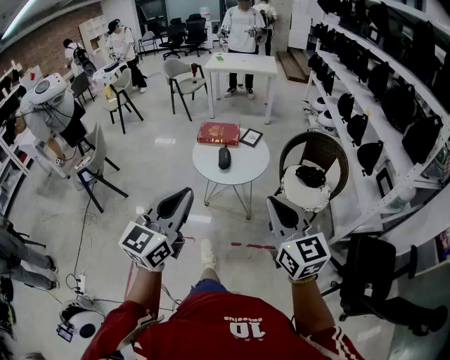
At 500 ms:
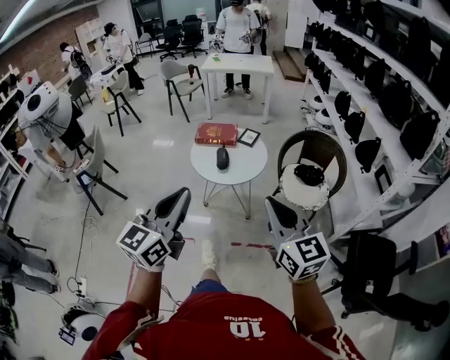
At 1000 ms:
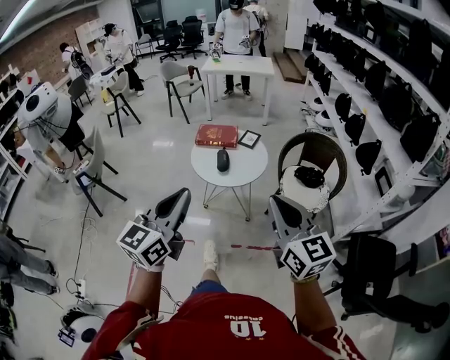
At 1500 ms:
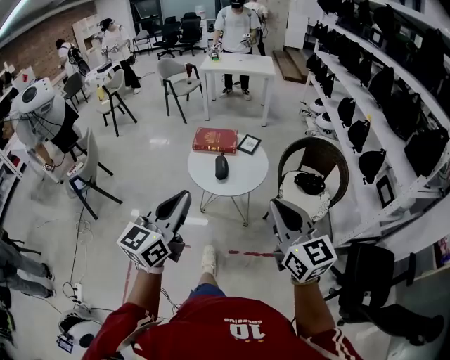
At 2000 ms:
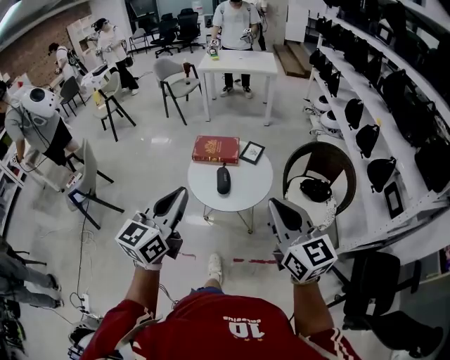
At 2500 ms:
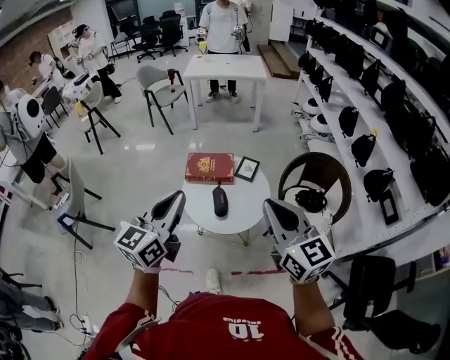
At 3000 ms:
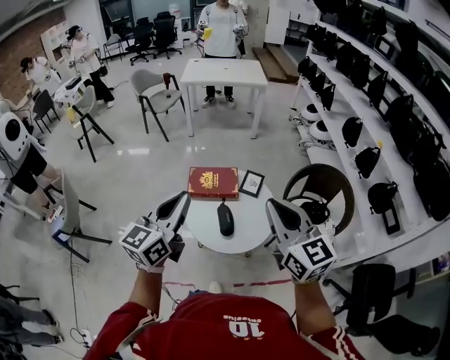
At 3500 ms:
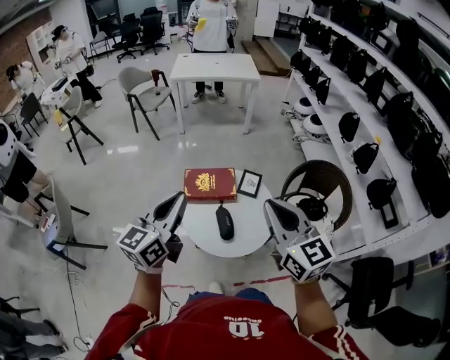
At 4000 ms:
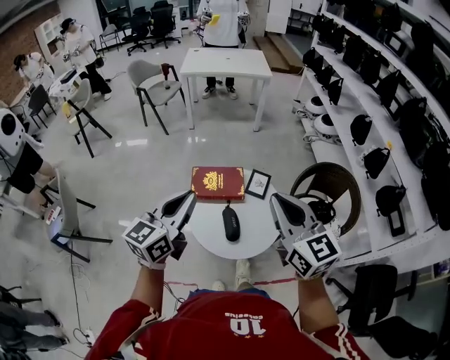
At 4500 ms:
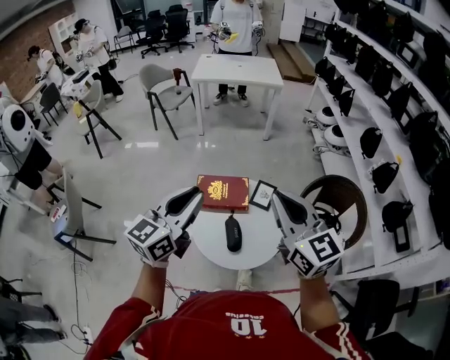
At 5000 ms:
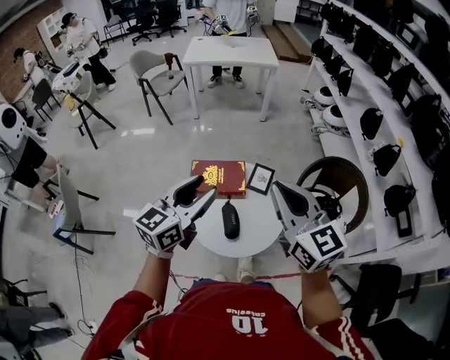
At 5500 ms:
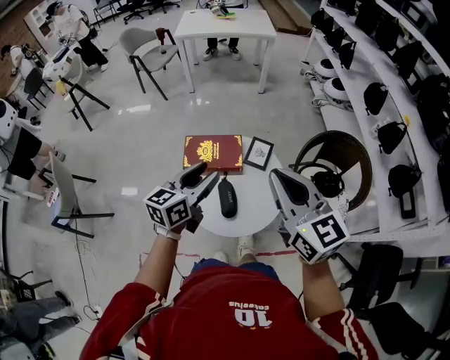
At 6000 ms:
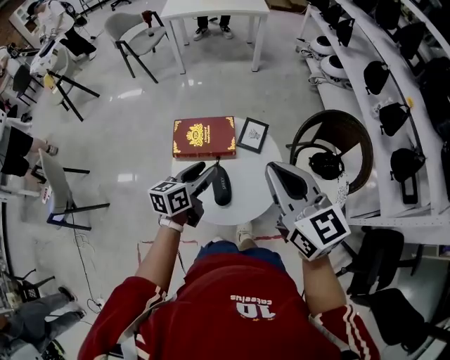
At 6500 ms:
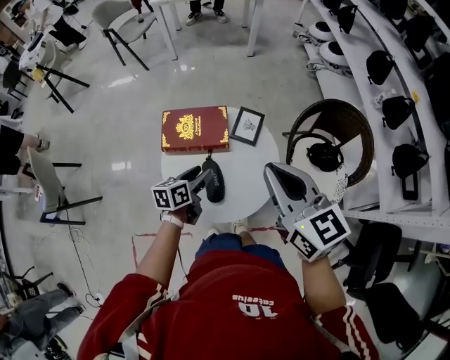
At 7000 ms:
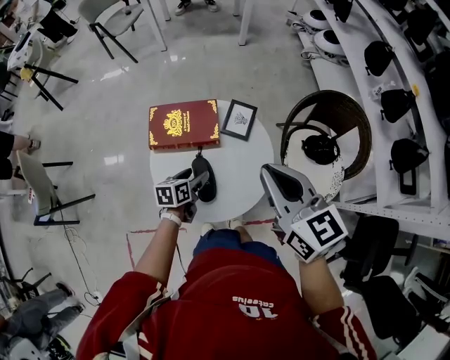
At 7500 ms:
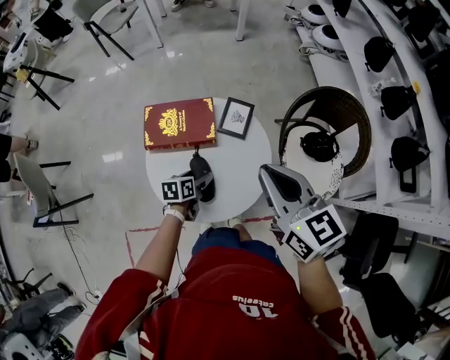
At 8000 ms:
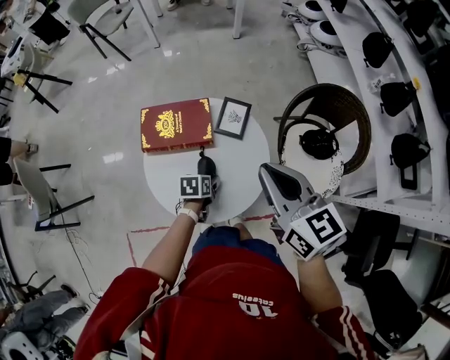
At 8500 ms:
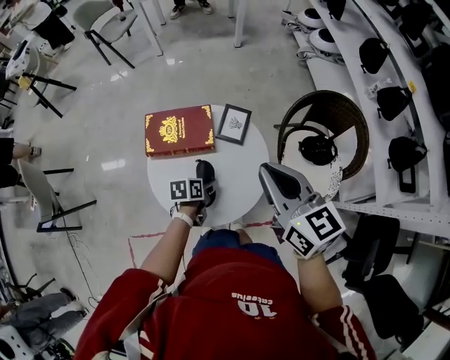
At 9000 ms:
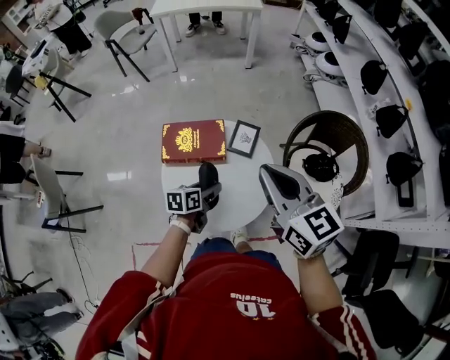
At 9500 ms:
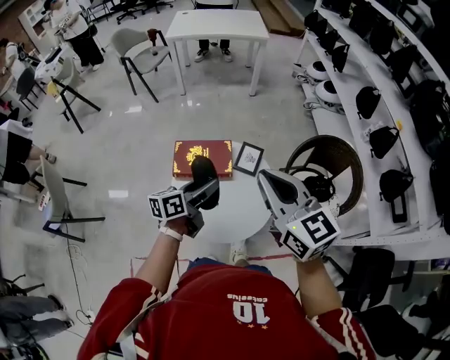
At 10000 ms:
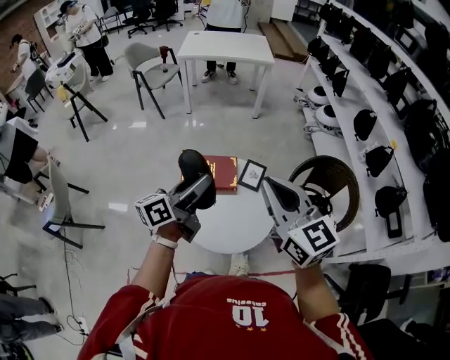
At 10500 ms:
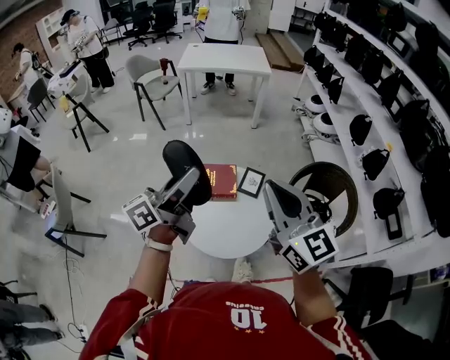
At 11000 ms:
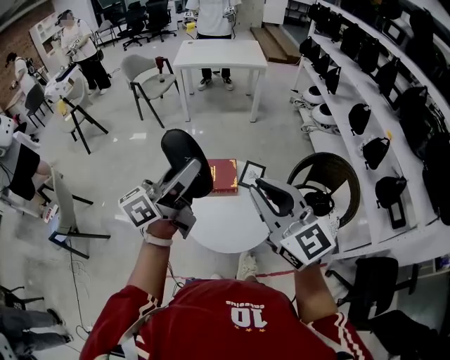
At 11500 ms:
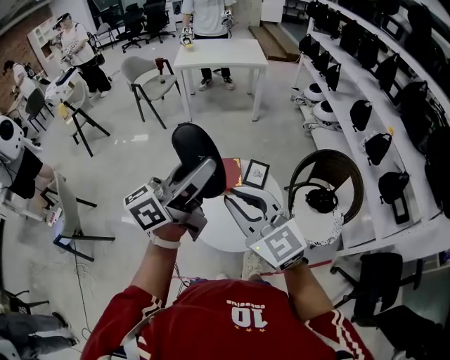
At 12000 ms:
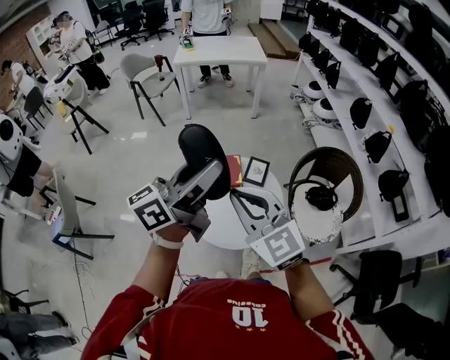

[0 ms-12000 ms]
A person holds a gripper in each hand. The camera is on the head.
0 ms to 2000 ms: Both grippers travel together forward, roughly 20 cm.
2000 ms to 4000 ms: The right gripper heads forward and to the left, covering about 30 cm; the left gripper shifts roughly 30 cm forward.
4000 ms to 6000 ms: The right gripper is displaced downward and forward by about 10 cm. The left gripper goes roughly 25 cm downward, changes its angle by about 30 degrees, and opens up.
6000 ms to 8000 ms: The left gripper goes some 25 cm downward, and points its fingers some 40 degrees further downward; the right gripper heads downward and forward, covering approximately 10 cm.
8000 ms to 10000 ms: The right gripper heads upward and to the left, covering about 20 cm, and rotates roughly 20 degrees. The left gripper shifts some 40 cm upward, and angles its fingers upward, by roughly 70 degrees.
10000 ms to 12000 ms: The left gripper travels upward and backward by some 15 cm. The right gripper shifts roughly 10 cm to the left and backward.

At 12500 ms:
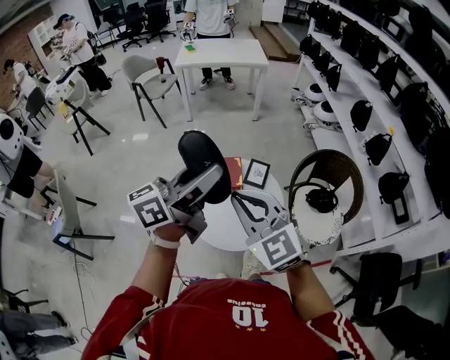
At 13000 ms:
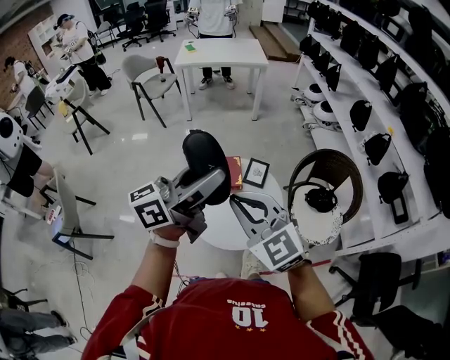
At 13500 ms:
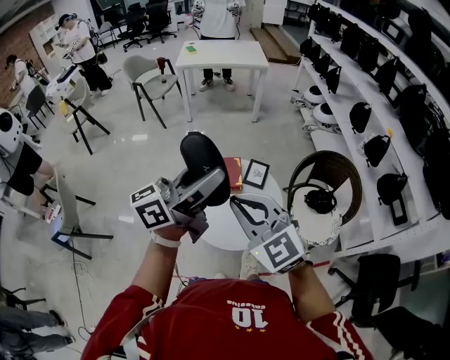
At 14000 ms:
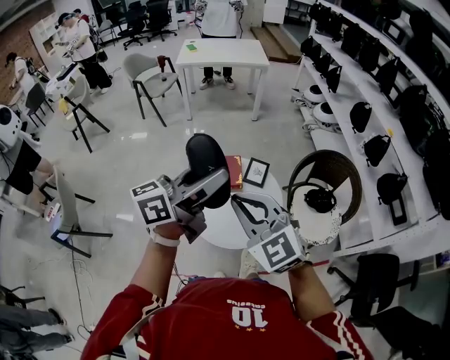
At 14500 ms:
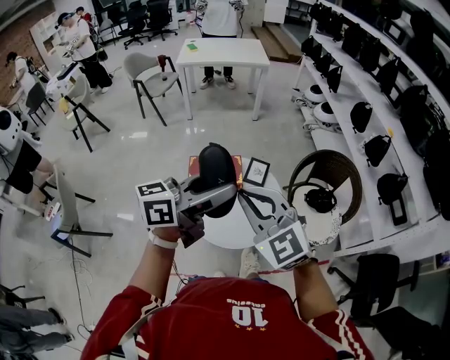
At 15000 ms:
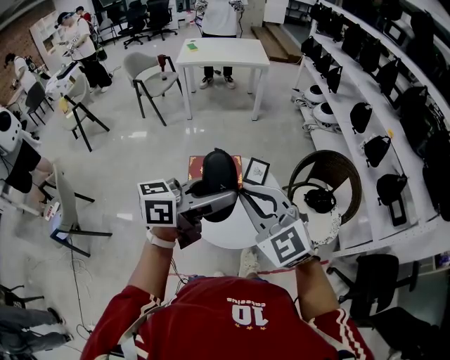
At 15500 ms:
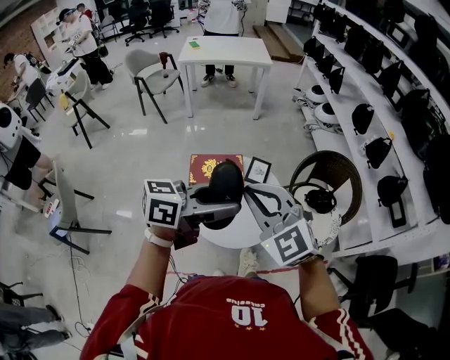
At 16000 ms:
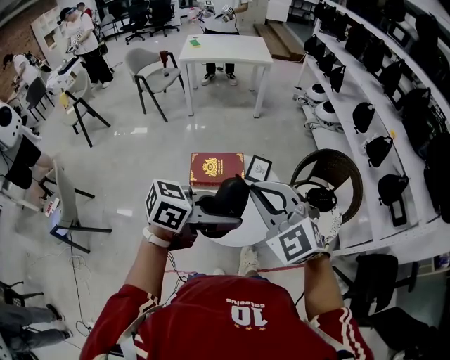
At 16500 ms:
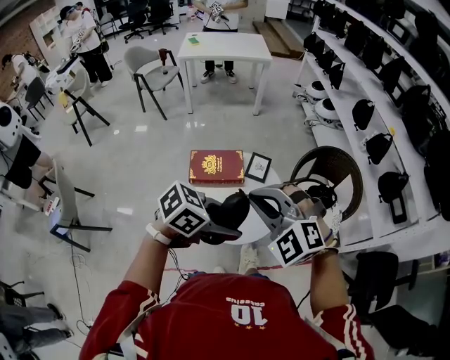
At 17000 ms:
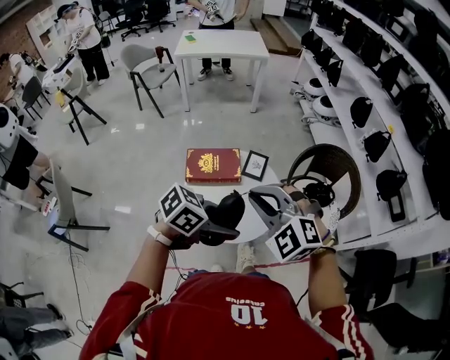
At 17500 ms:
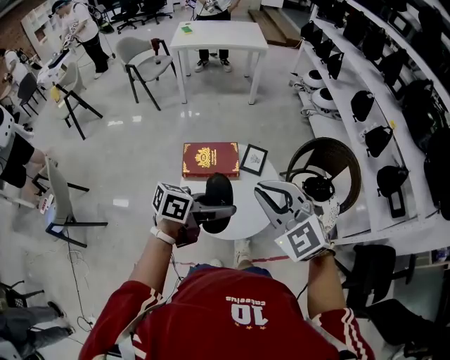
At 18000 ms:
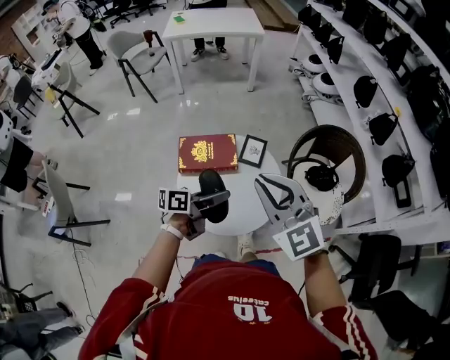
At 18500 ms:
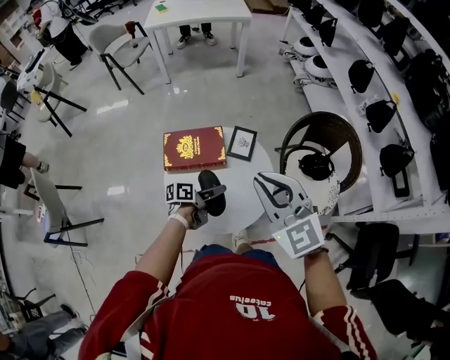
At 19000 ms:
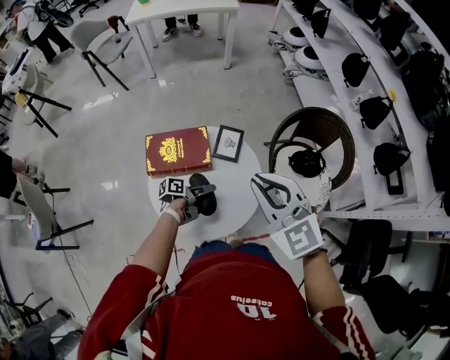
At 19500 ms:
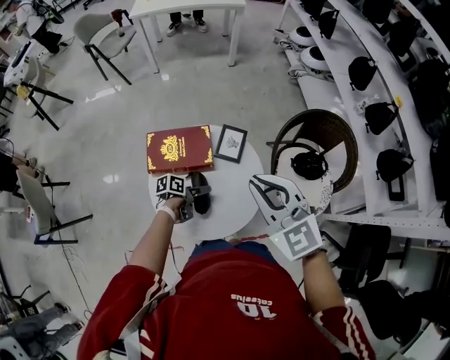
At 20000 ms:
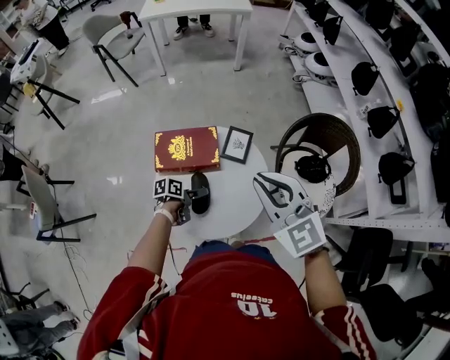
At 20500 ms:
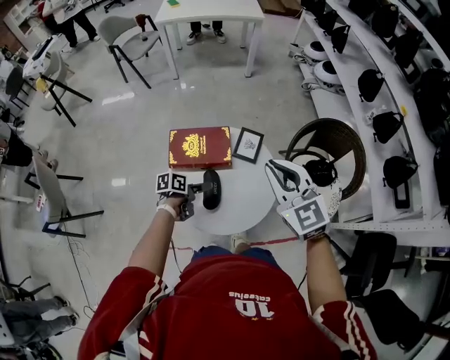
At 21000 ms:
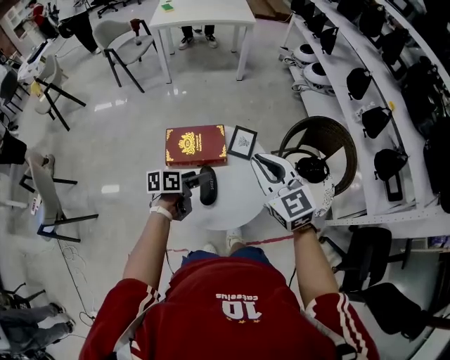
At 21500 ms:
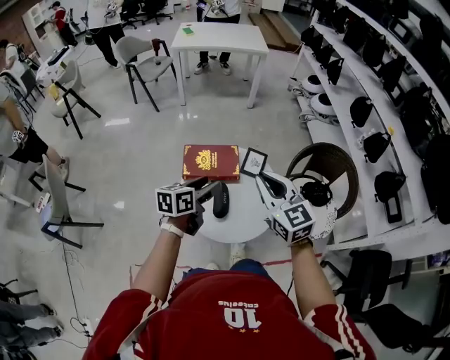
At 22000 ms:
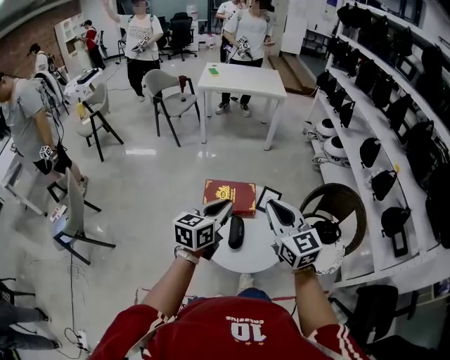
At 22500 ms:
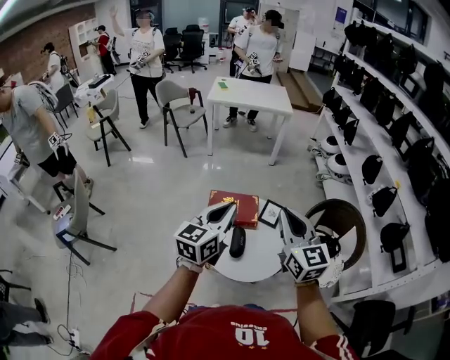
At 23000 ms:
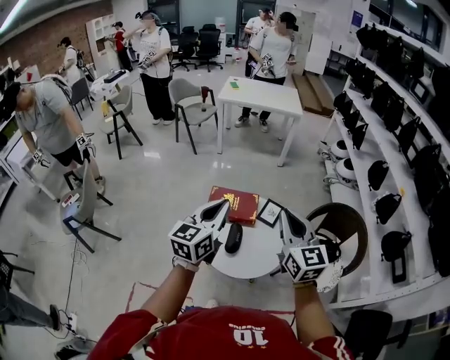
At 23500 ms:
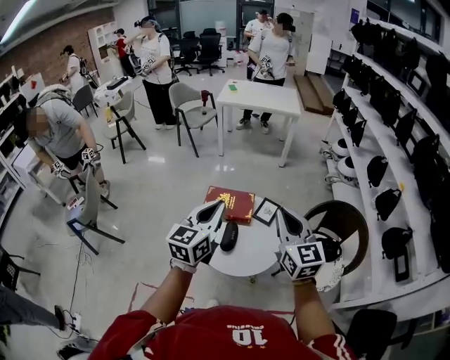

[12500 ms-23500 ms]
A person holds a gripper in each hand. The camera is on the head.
12500 ms to 14500 ms: The left gripper ends up approximately 5 cm from where it was.
14500 ms to 16000 ms: The left gripper heads downward, covering some 5 cm, and rotates about 30 degrees.
16000 ms to 18000 ms: The right gripper shifts by approximately 10 cm, while the left gripper shifts roughly 20 cm downward, and rotates roughly 40 degrees.
18000 ms to 20000 ms: The left gripper heads downward, covering about 25 cm, and points its fingers roughly 30 degrees further downward; the right gripper goes about 10 cm forward and downward.
20000 ms to 21500 ms: The right gripper heads to the left, covering some 5 cm, while the left gripper goes roughly 25 cm upward, and turns by approximately 40 degrees.
21500 ms to 23500 ms: The left gripper goes about 25 cm upward and backward, changes its angle by approximately 40 degrees, and closes its fingers; the right gripper travels upward, to the right and backward by roughly 15 cm.

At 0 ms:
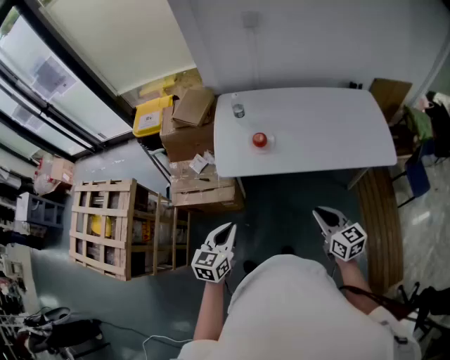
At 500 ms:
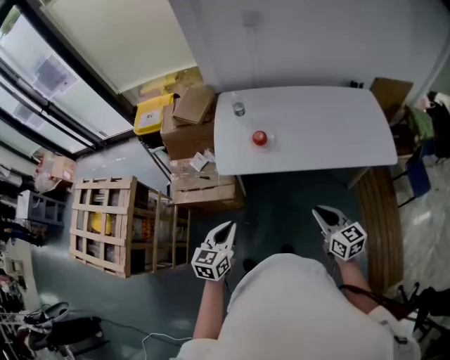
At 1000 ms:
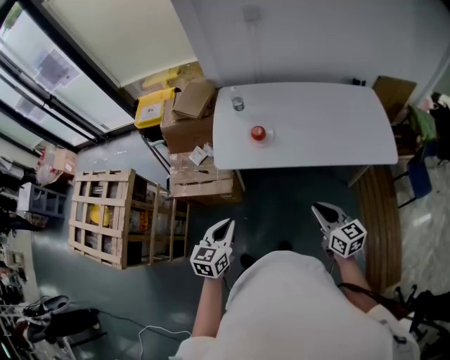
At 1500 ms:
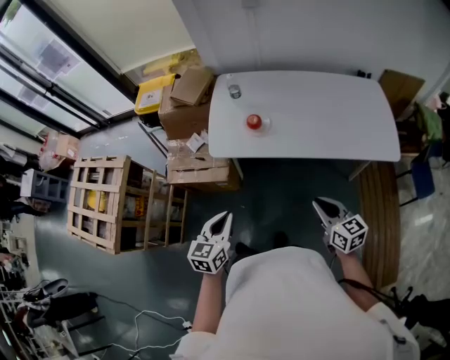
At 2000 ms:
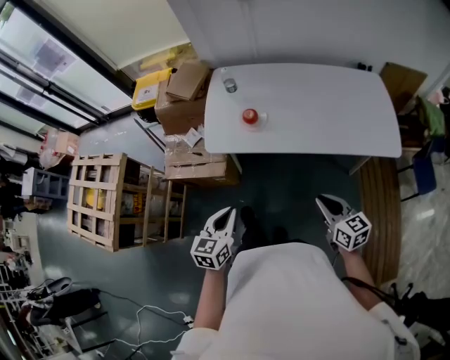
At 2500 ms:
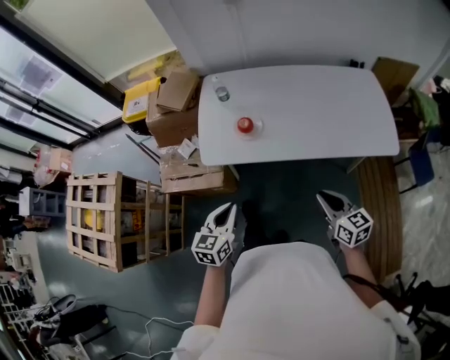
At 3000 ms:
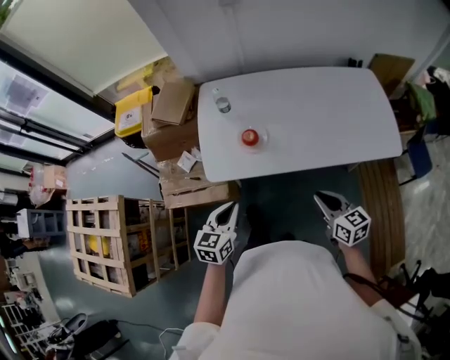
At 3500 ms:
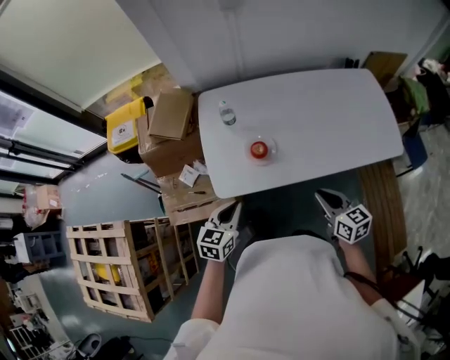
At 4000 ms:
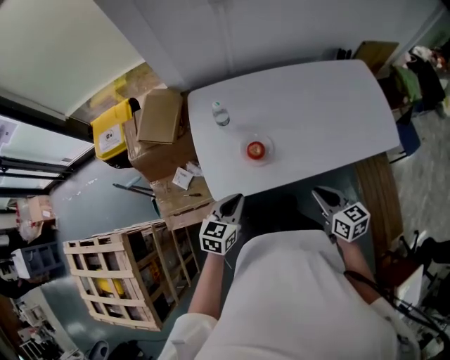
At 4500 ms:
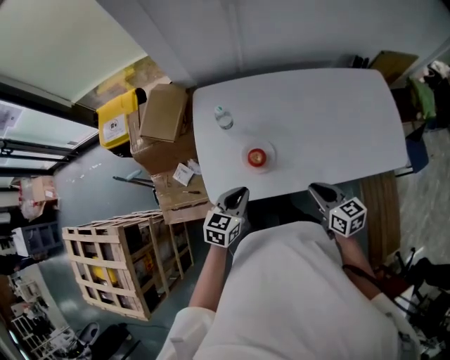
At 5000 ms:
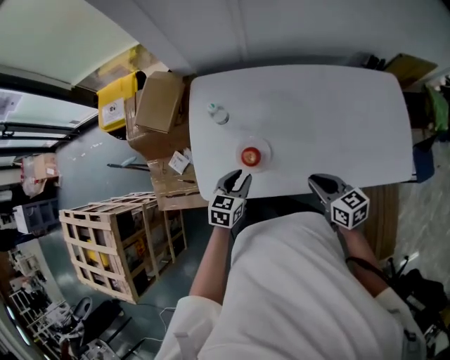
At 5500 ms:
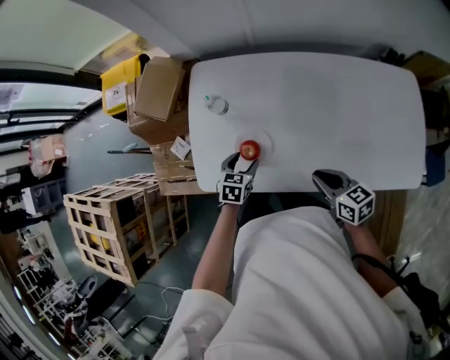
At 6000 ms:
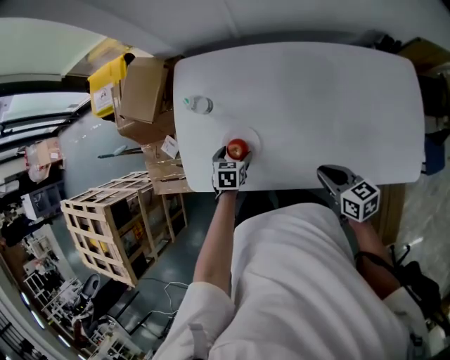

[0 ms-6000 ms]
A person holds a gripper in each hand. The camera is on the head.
0 ms to 2000 ms: Both grippers travel together to the right, about 10 cm.
2000 ms to 4000 ms: The right gripper is displaced forward and to the left by some 20 cm. The left gripper heads forward, covering roughly 25 cm, and rotates approximately 30 degrees.
4000 ms to 6000 ms: The left gripper is displaced downward by some 20 cm, tilts its fingers roughly 30 degrees downward, and opens; the right gripper moves approximately 20 cm, and rotates about 20 degrees.
